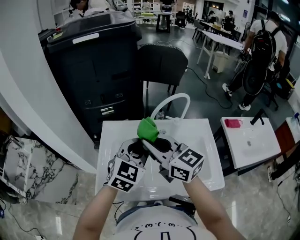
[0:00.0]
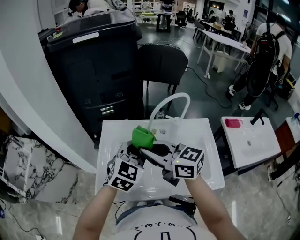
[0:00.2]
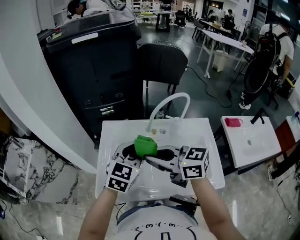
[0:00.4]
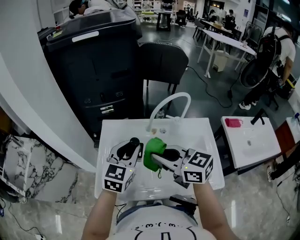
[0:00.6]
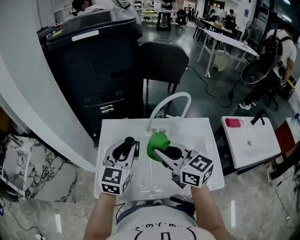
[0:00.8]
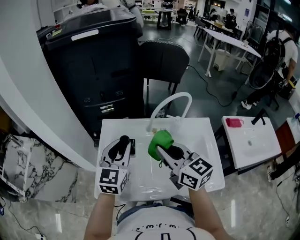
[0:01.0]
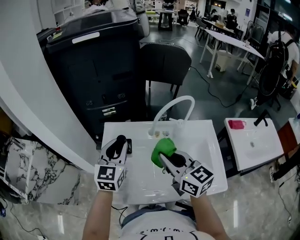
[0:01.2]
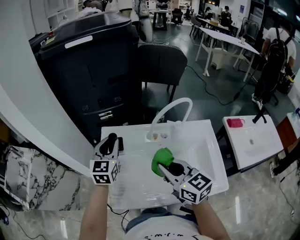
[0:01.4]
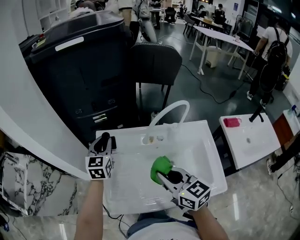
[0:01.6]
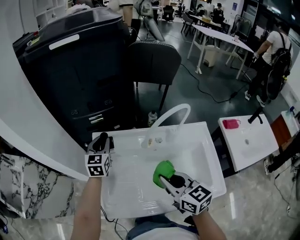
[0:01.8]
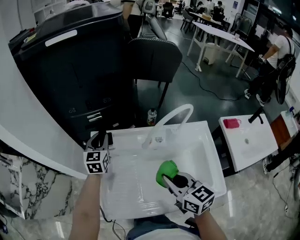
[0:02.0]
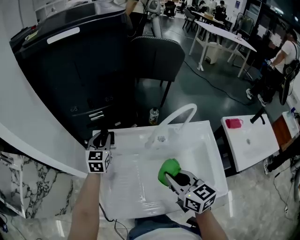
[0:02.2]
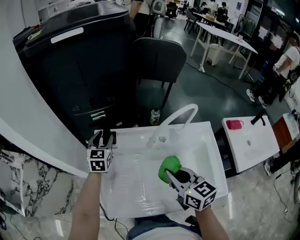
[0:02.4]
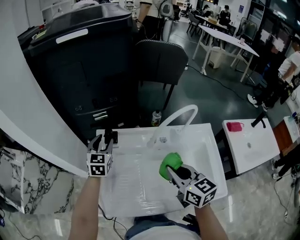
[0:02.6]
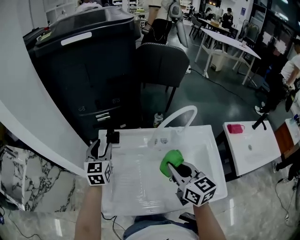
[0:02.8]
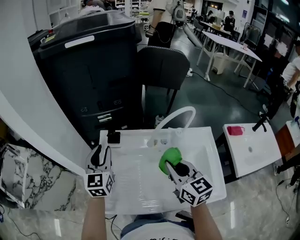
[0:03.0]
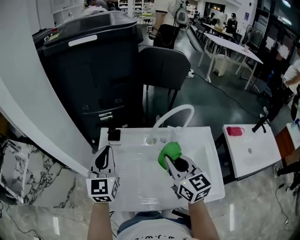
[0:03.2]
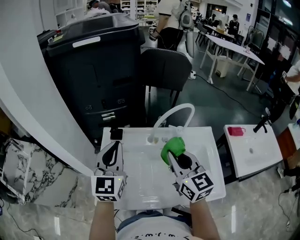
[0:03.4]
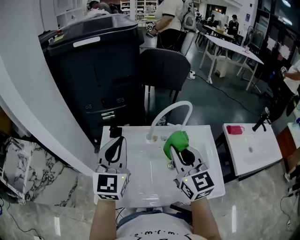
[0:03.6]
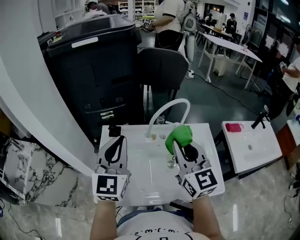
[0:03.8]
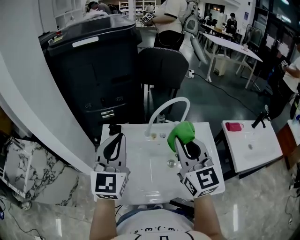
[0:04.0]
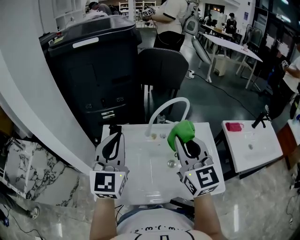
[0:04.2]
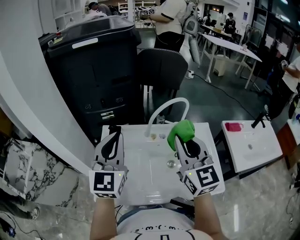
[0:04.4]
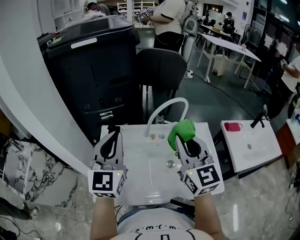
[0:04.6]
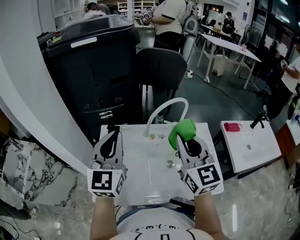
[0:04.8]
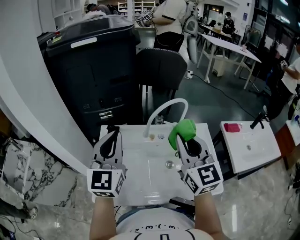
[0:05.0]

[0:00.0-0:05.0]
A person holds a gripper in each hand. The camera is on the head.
0:00.0 to 0:01.6: The left gripper moves forward, to the left and downward, roughly 25 cm, and rotates approximately 30 degrees, while the right gripper is displaced downward by about 10 cm.
0:01.6 to 0:03.4: The right gripper is displaced upward by roughly 5 cm, while the left gripper moves backward and upward, some 15 cm.
0:03.4 to 0:05.0: The grippers both shift upward by some 5 cm.

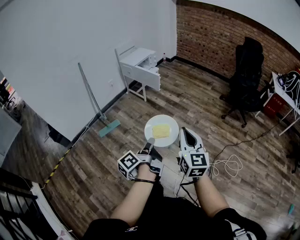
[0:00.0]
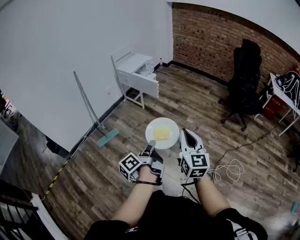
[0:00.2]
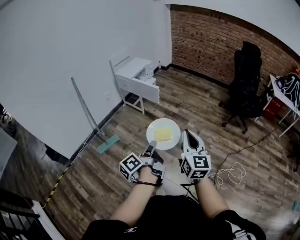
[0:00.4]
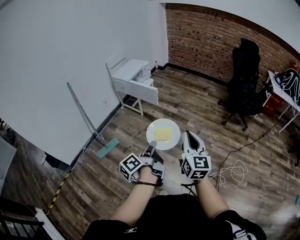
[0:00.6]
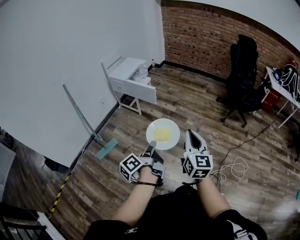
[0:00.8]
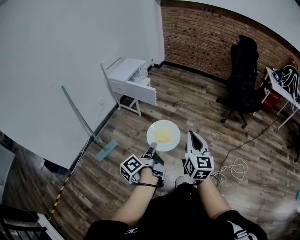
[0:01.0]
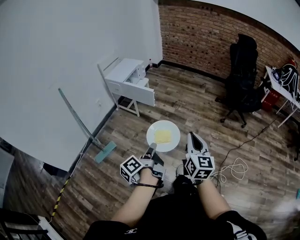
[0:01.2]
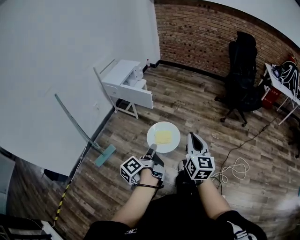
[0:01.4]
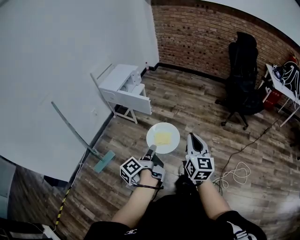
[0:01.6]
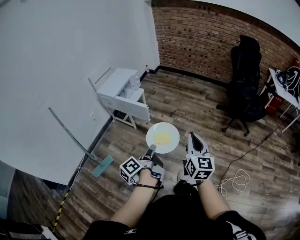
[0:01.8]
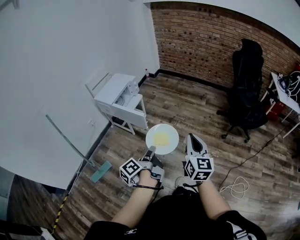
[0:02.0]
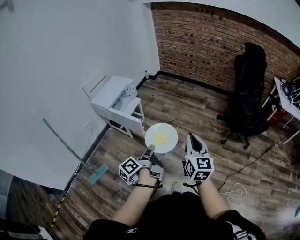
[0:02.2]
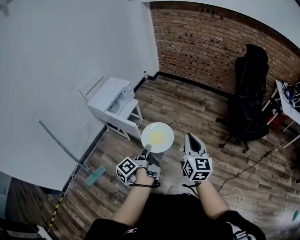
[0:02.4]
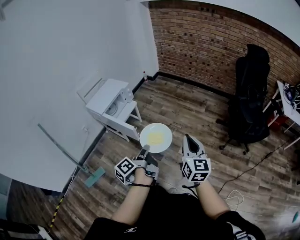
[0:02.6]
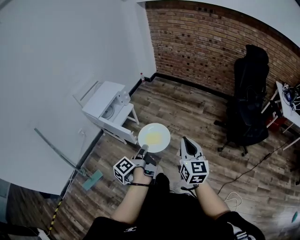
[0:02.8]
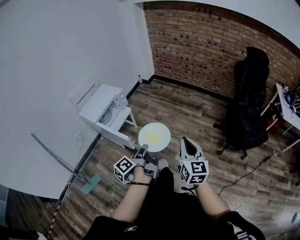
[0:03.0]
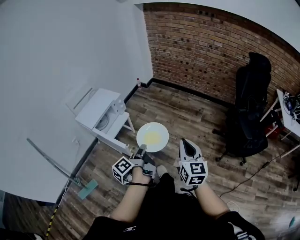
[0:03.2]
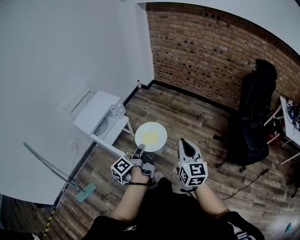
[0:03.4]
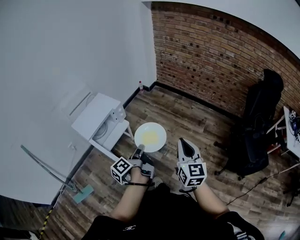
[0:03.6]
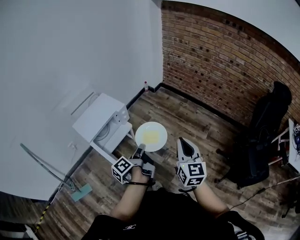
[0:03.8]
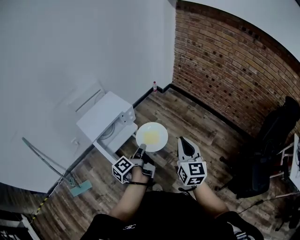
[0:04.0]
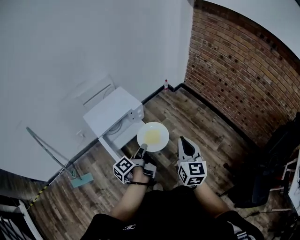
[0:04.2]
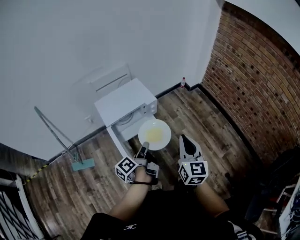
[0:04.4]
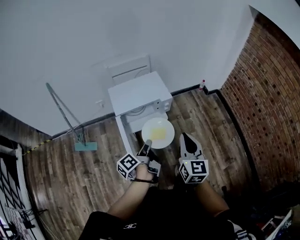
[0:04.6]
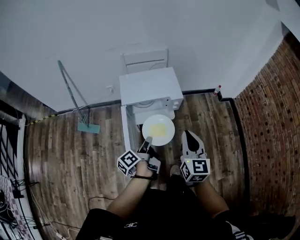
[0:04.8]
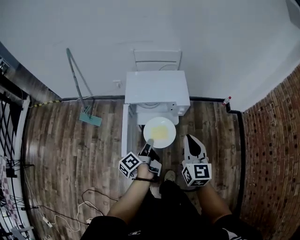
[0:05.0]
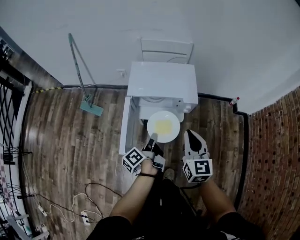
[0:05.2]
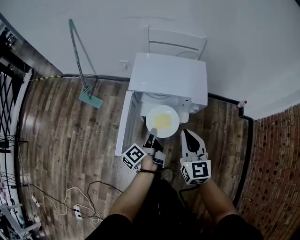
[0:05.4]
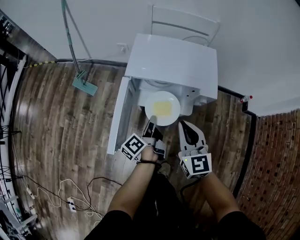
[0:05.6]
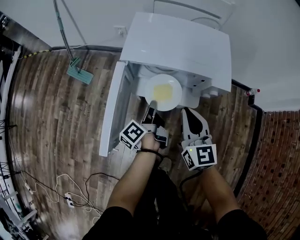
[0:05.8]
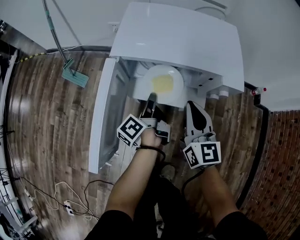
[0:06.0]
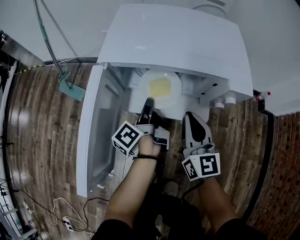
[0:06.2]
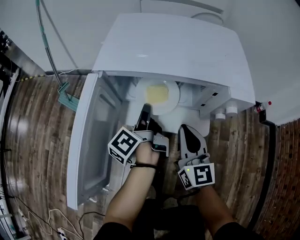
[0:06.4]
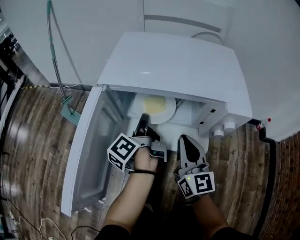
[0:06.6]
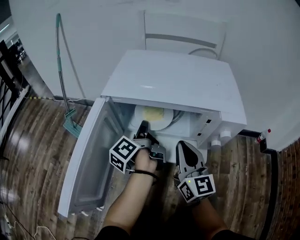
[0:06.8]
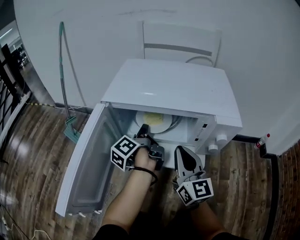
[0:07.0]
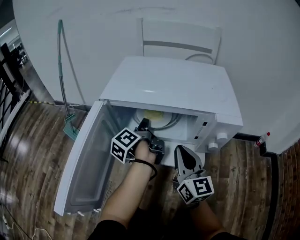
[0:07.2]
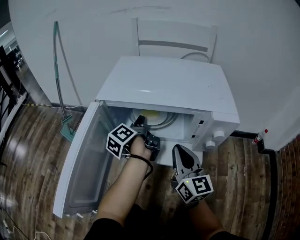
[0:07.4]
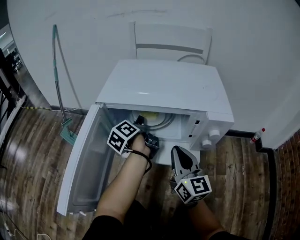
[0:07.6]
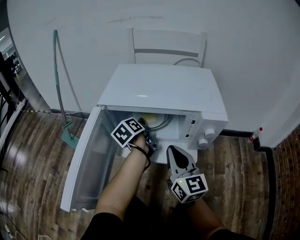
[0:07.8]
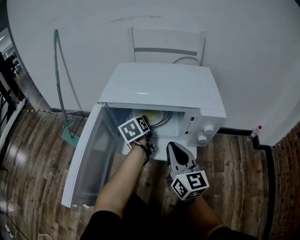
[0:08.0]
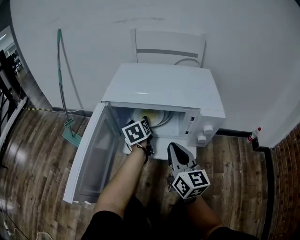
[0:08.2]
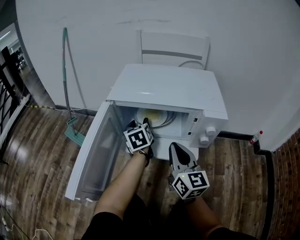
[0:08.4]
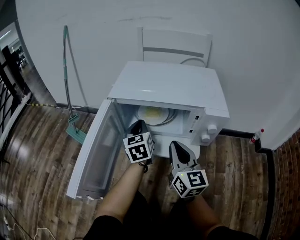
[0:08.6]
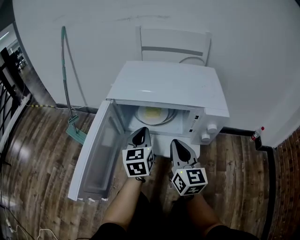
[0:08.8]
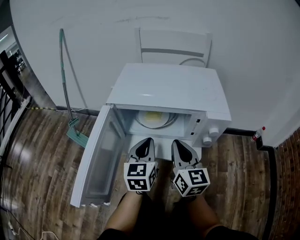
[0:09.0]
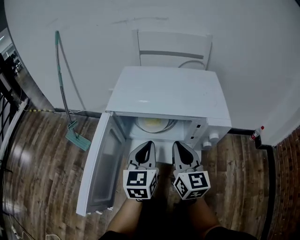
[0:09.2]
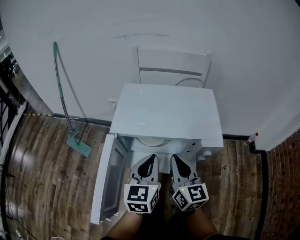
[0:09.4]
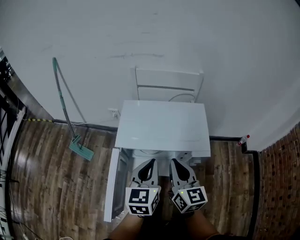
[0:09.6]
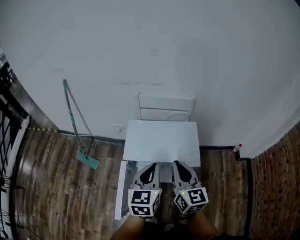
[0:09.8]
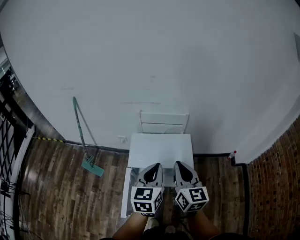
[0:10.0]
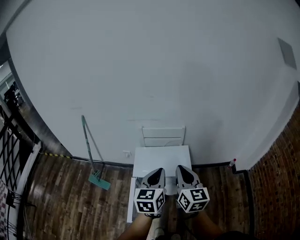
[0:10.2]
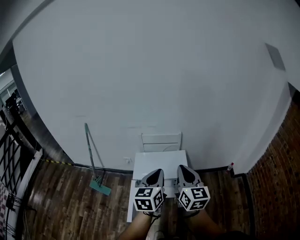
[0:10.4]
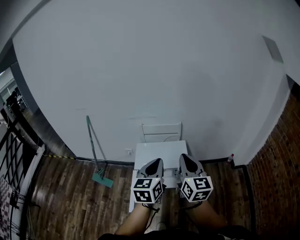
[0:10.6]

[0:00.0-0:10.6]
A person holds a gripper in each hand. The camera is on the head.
0:00.0 to 0:01.6: The right gripper changes place by some 30 cm.
0:01.6 to 0:03.0: The right gripper shifts by approximately 40 cm.
0:03.0 to 0:04.6: The right gripper ends up some 50 cm from where it was, and rotates some 40 degrees.
0:04.6 to 0:06.0: The right gripper heads downward, covering about 40 cm, and turns by approximately 30 degrees.
0:06.0 to 0:07.6: The right gripper heads downward, covering some 10 cm.
0:09.0 to 0:10.6: The right gripper shifts about 60 cm upward.

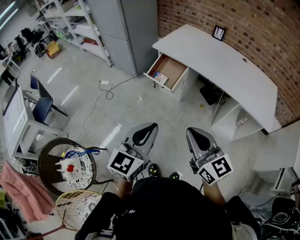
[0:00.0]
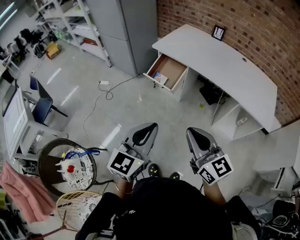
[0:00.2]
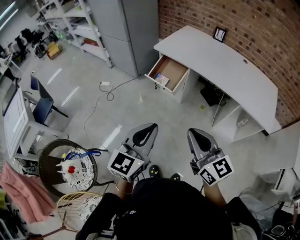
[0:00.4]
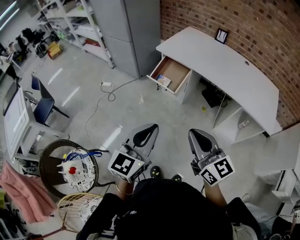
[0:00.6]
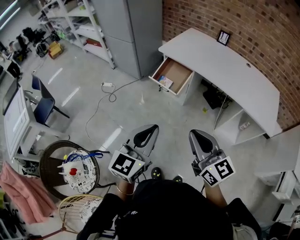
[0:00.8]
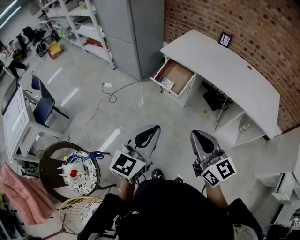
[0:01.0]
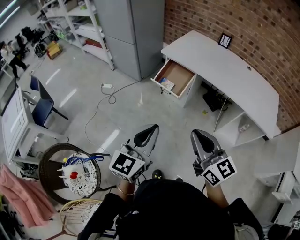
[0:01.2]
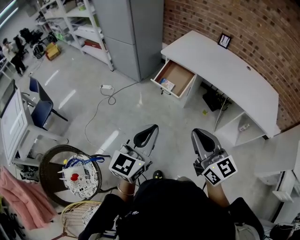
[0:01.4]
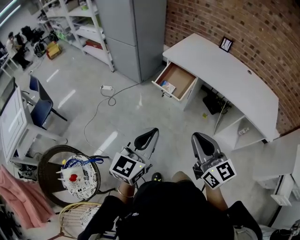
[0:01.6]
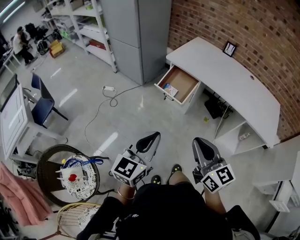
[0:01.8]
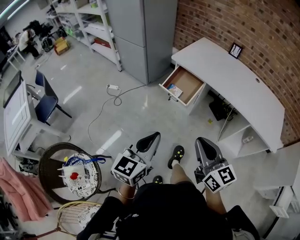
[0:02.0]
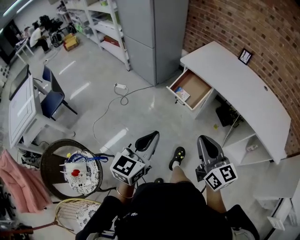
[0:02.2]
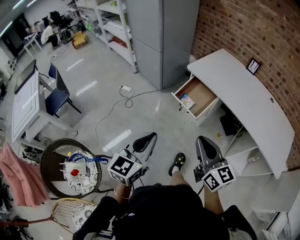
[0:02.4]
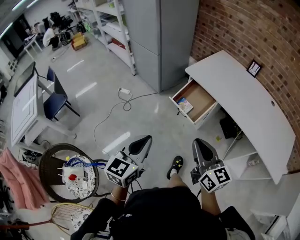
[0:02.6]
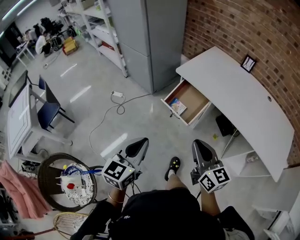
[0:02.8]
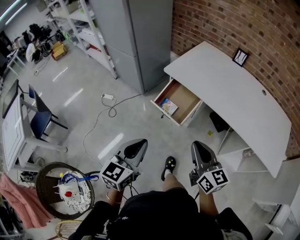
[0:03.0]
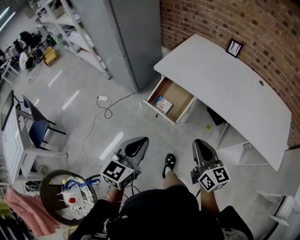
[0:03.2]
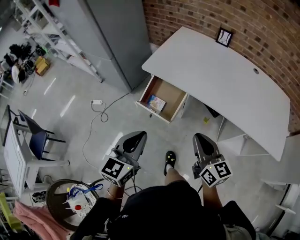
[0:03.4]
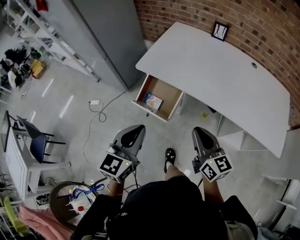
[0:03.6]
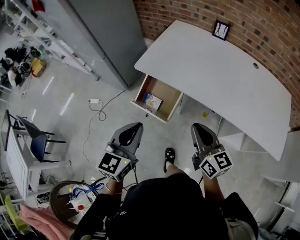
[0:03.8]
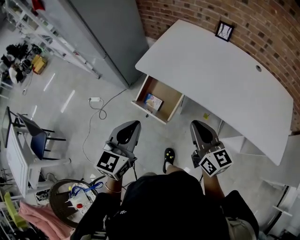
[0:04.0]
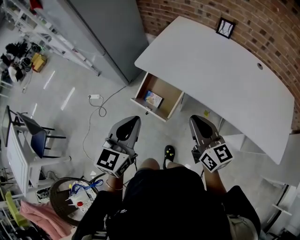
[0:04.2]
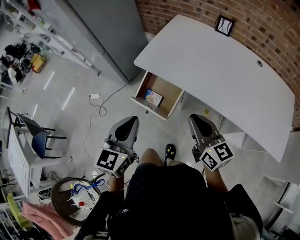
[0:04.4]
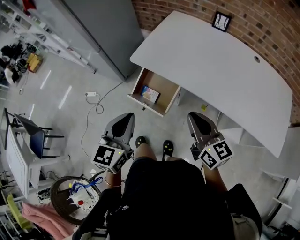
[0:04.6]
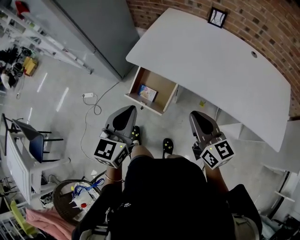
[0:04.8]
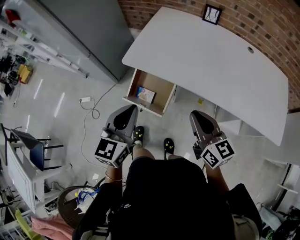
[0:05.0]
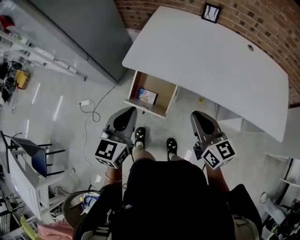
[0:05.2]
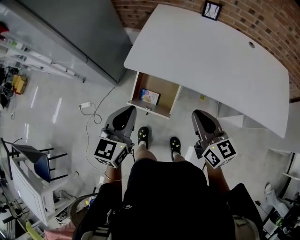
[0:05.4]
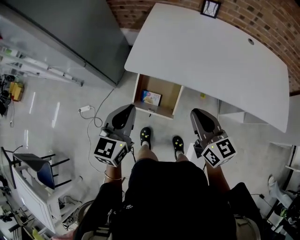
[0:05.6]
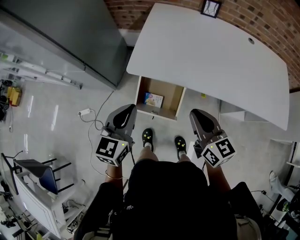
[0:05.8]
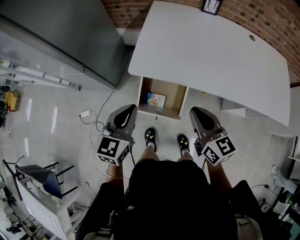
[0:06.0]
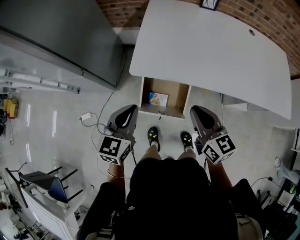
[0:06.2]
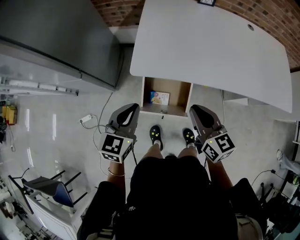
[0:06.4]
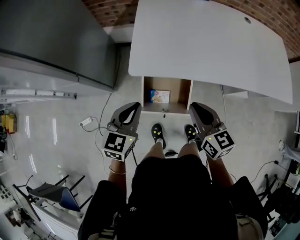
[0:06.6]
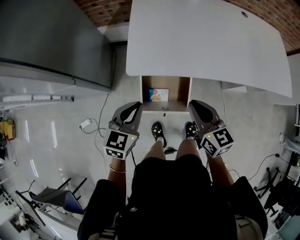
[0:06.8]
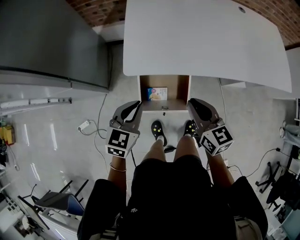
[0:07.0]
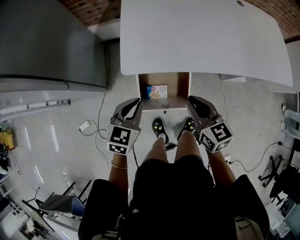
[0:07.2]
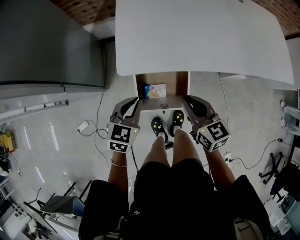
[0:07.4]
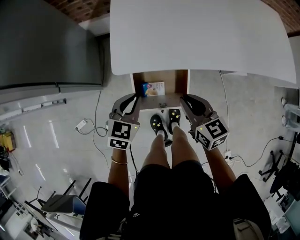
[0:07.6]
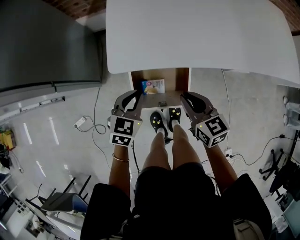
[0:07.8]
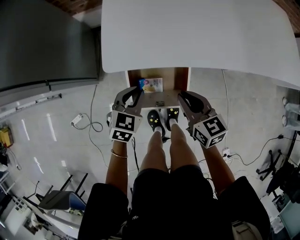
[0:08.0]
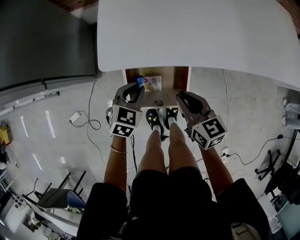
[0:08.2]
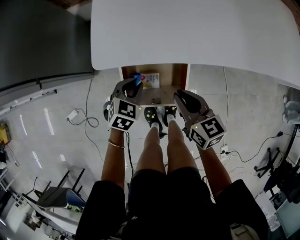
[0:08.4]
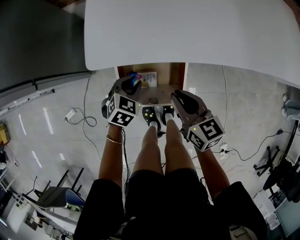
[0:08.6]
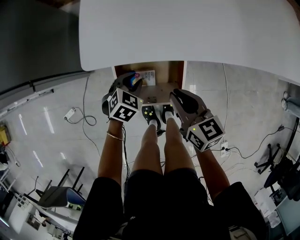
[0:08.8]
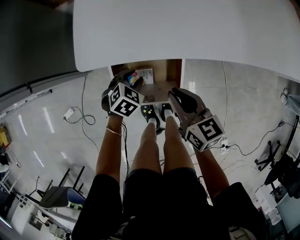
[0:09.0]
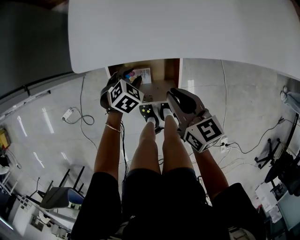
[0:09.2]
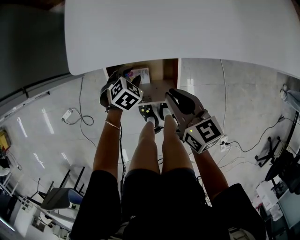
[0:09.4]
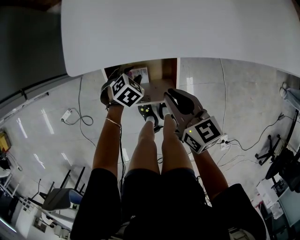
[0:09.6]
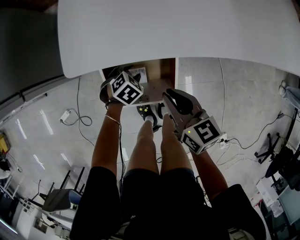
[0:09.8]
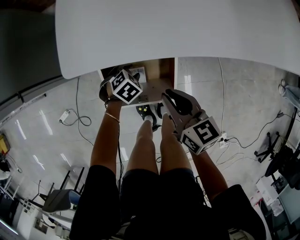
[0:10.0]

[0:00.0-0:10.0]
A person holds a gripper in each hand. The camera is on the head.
0:00.0 to 0:01.4: The grippers both shift to the left by approximately 10 cm.
0:01.4 to 0:02.8: The grippers both shift forward by some 20 cm.
0:02.8 to 0:04.2: The grippers both shift forward and to the right by approximately 25 cm.
0:04.2 to 0:05.8: The left gripper is displaced forward and to the left by approximately 20 cm. Meanwhile the right gripper is displaced to the left and forward by about 10 cm.
0:05.8 to 0:07.2: The left gripper is displaced downward, forward and to the left by approximately 20 cm, and swivels some 30 degrees; the right gripper goes about 15 cm downward and to the left.
0:07.2 to 0:08.6: The left gripper is displaced downward by roughly 20 cm, and turns by about 20 degrees. The right gripper shifts roughly 15 cm downward.
0:08.6 to 0:10.0: The left gripper moves downward, roughly 10 cm, and turns by about 20 degrees.
